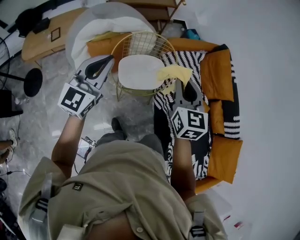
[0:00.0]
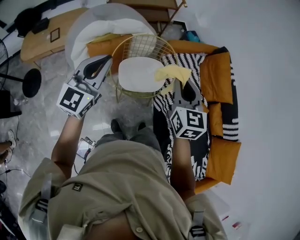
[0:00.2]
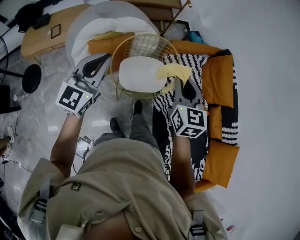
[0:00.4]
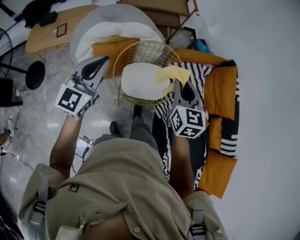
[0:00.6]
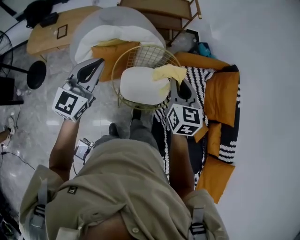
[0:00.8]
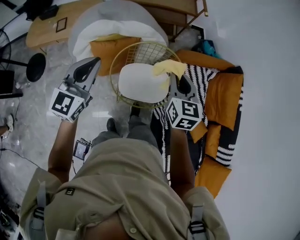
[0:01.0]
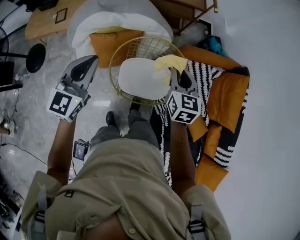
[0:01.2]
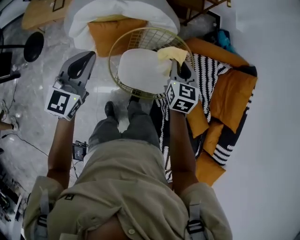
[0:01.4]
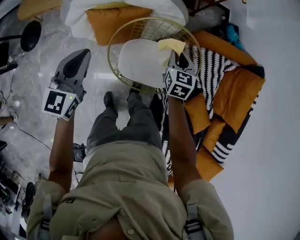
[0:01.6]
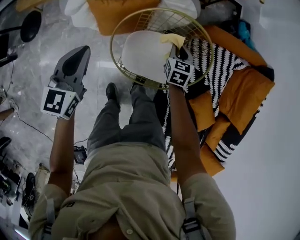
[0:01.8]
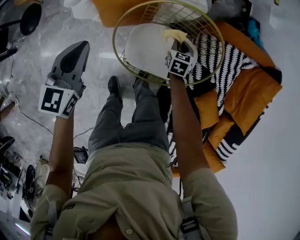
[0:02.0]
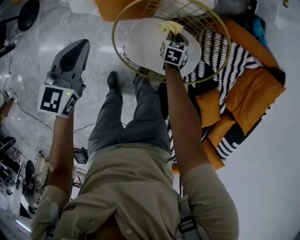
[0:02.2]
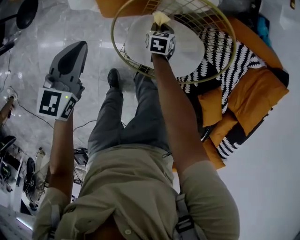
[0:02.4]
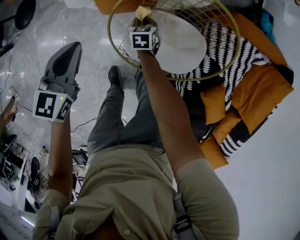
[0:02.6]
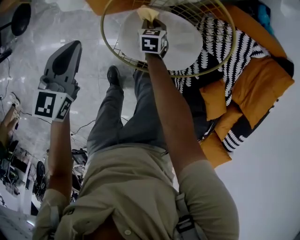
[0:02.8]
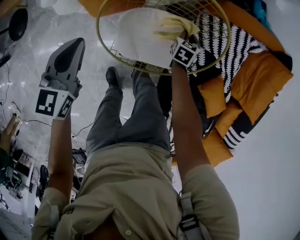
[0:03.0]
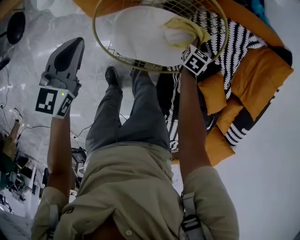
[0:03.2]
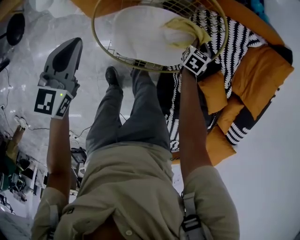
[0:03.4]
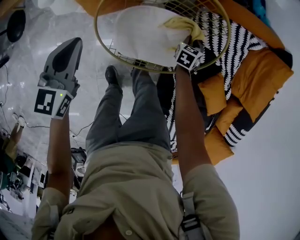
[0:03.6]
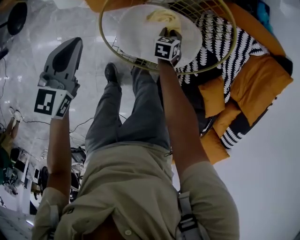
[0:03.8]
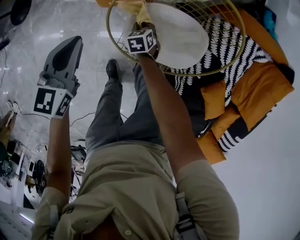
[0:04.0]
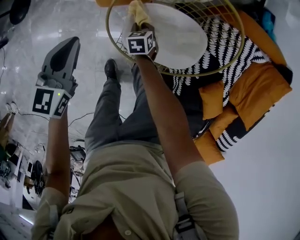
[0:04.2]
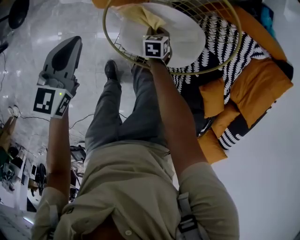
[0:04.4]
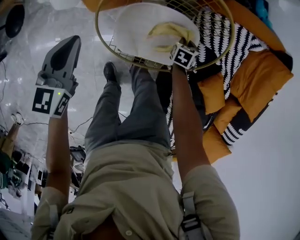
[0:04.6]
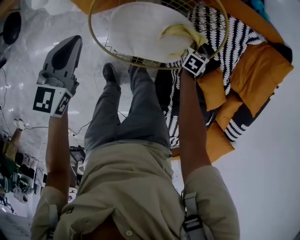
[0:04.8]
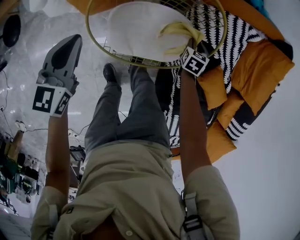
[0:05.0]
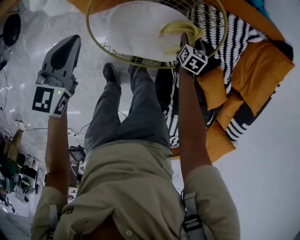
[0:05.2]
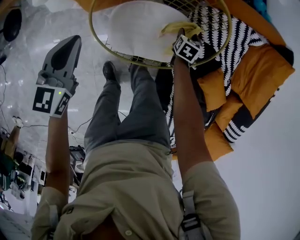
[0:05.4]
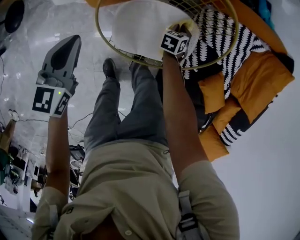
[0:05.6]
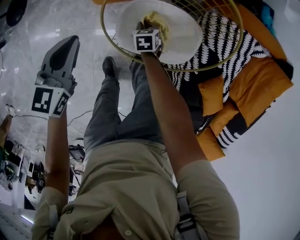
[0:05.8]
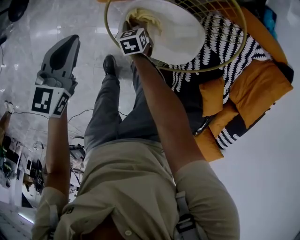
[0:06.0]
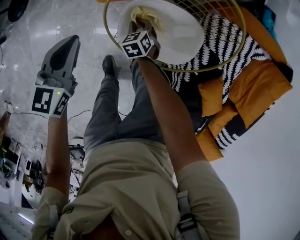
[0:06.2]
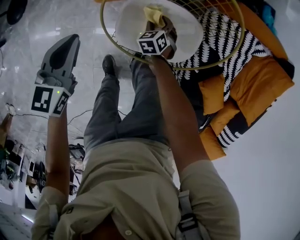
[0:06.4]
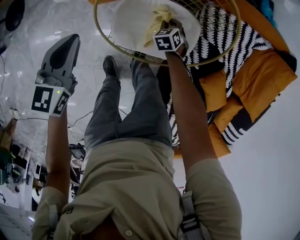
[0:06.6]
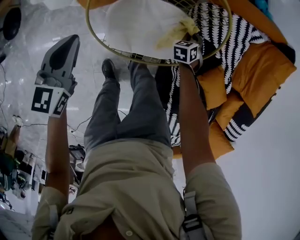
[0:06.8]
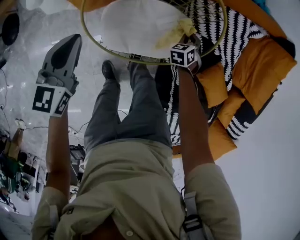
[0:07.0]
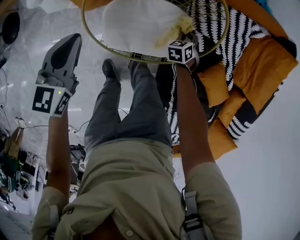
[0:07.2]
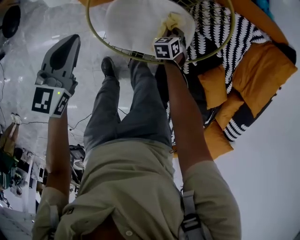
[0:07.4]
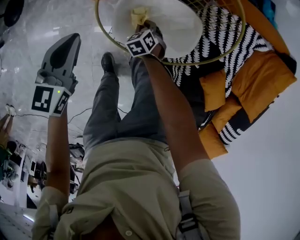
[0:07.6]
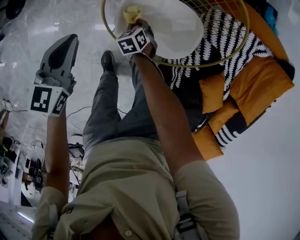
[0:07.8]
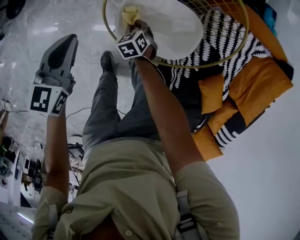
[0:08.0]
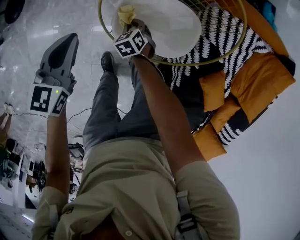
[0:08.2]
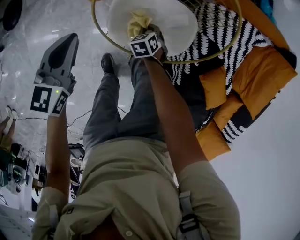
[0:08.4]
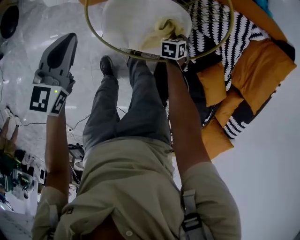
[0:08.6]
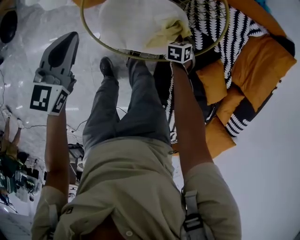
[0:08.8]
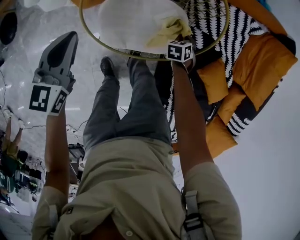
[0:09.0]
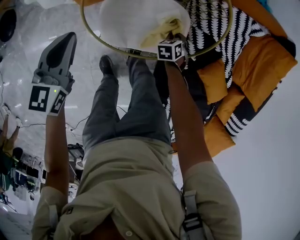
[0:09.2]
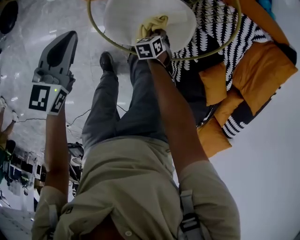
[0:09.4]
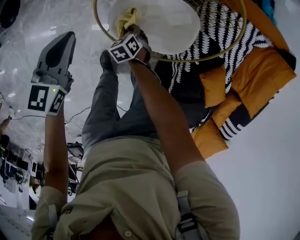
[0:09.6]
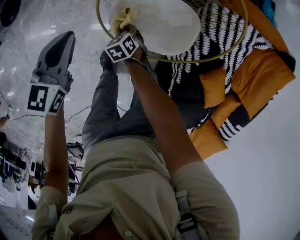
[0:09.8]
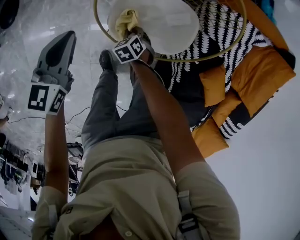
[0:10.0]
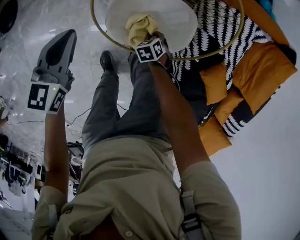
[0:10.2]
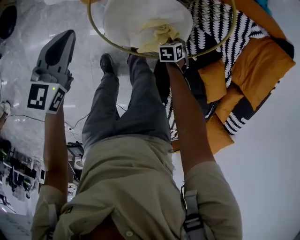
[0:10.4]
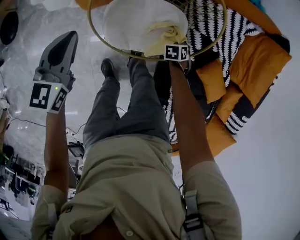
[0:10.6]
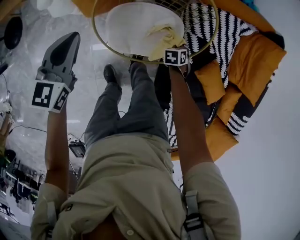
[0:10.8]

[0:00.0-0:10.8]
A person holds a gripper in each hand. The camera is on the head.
0:00.0 to 0:01.6: The left gripper shifts some 30 cm downward, forward and to the left, and turns by approximately 30 degrees, while the right gripper goes approximately 50 cm downward and forward, and turns by approximately 20 degrees.
0:01.6 to 0:03.0: The right gripper moves downward, some 30 cm, and swivels some 30 degrees; the left gripper heads downward, covering roughly 15 cm.
0:04.6 to 0:06.2: The left gripper ends up about 5 cm from where it was. Meanwhile the right gripper ends up roughly 30 cm from where it was, turns by roughly 40 degrees, and opens, then closes once more.
0:06.2 to 0:07.8: The right gripper swings up and down, approximately 5 cm each way, with 2 reversals, and opens, then closes once more.
0:07.8 to 0:09.2: The right gripper changes place by some 25 cm, and rotates some 30 degrees, while the left gripper changes place by about 10 cm.
0:09.2 to 0:10.8: The grippers both shift upward by roughly 5 cm.

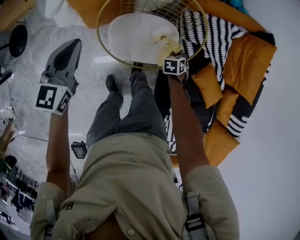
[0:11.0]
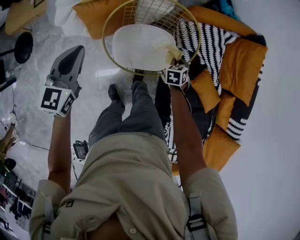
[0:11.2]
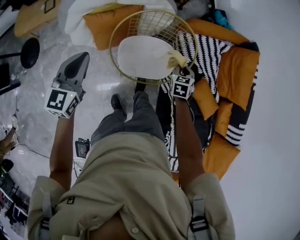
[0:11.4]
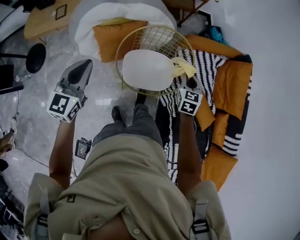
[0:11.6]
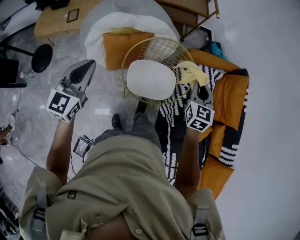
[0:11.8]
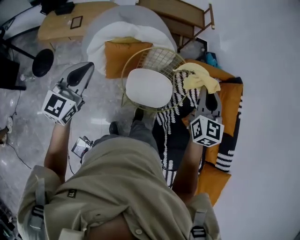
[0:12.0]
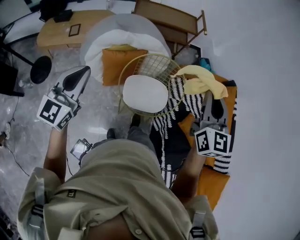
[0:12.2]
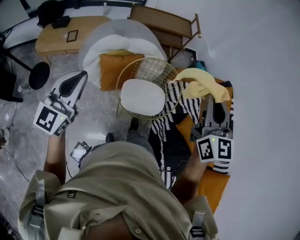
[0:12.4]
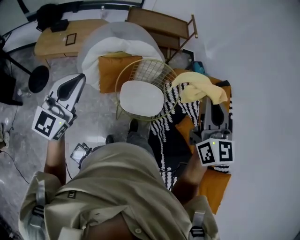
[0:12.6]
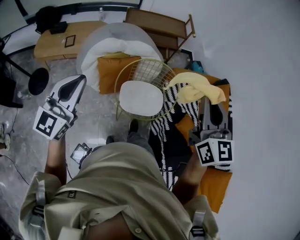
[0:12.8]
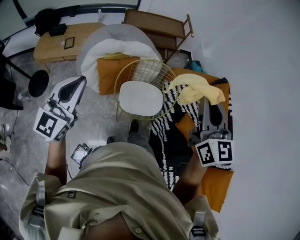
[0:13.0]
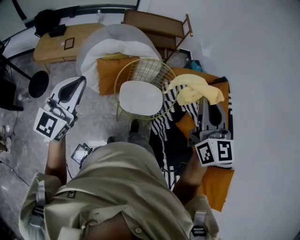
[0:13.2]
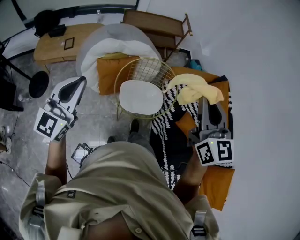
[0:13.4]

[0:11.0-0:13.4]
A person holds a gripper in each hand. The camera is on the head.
0:11.0 to 0:12.2: The right gripper heads upward, covering about 70 cm, and points its fingers roughly 70 degrees further upward. The left gripper is displaced upward and backward by about 40 cm, and swivels approximately 30 degrees.
0:12.2 to 0:13.4: The left gripper is displaced upward and backward by roughly 10 cm, while the right gripper travels backward and upward by some 10 cm.

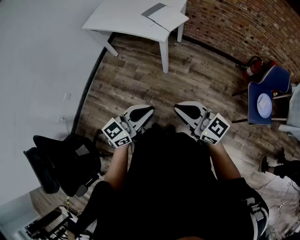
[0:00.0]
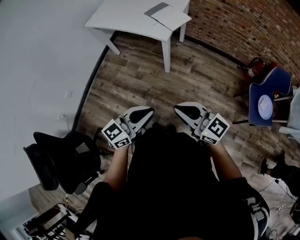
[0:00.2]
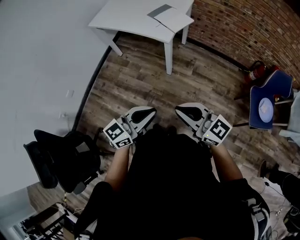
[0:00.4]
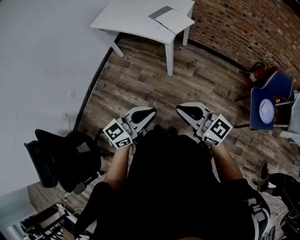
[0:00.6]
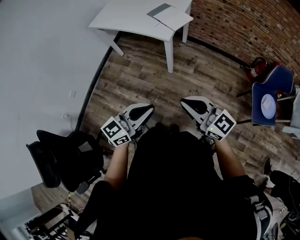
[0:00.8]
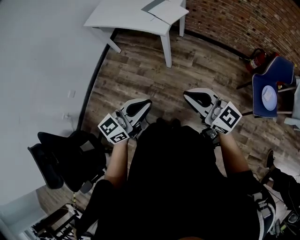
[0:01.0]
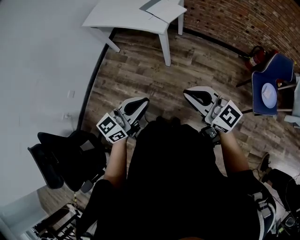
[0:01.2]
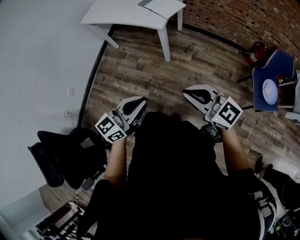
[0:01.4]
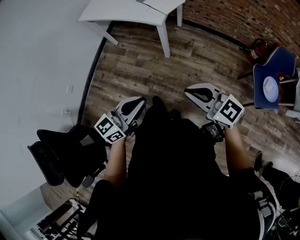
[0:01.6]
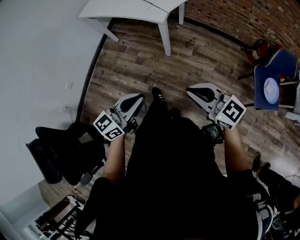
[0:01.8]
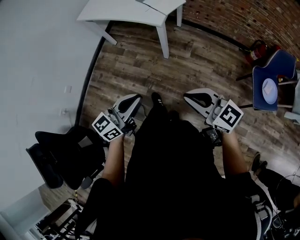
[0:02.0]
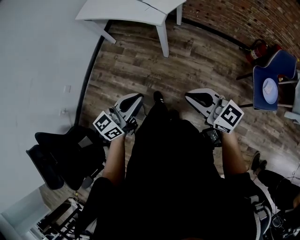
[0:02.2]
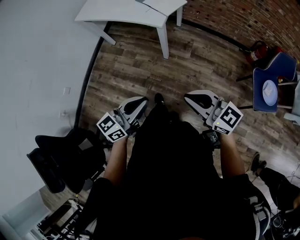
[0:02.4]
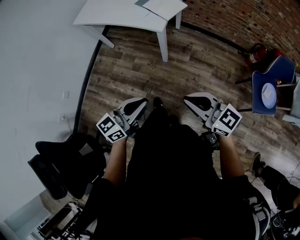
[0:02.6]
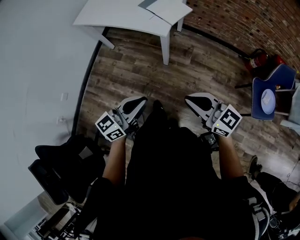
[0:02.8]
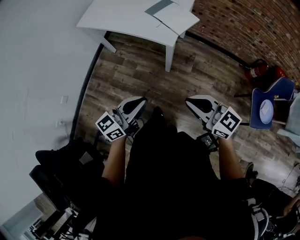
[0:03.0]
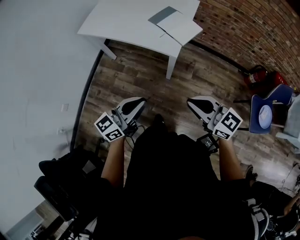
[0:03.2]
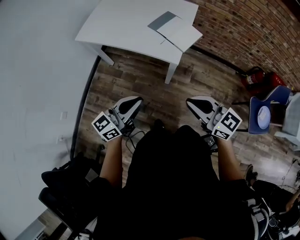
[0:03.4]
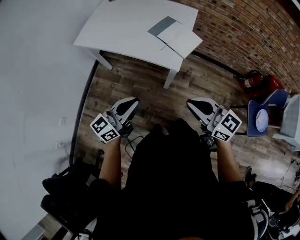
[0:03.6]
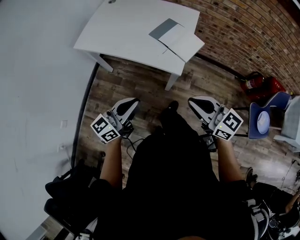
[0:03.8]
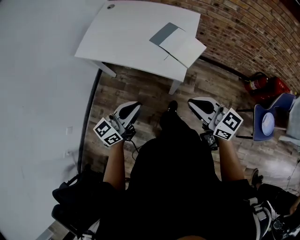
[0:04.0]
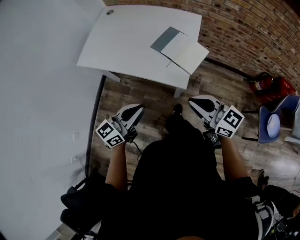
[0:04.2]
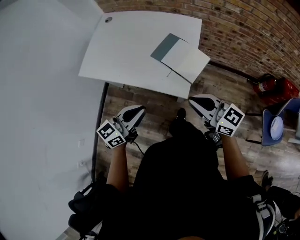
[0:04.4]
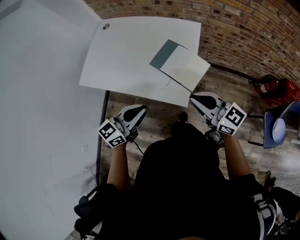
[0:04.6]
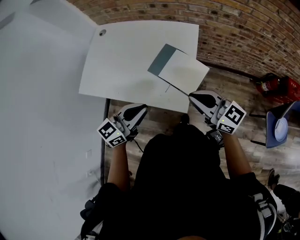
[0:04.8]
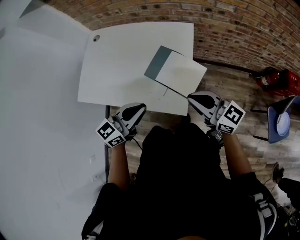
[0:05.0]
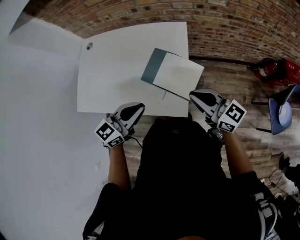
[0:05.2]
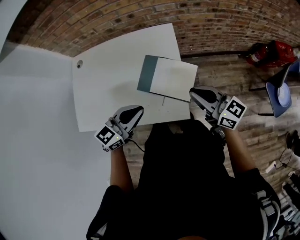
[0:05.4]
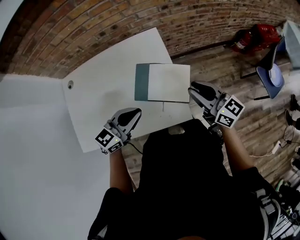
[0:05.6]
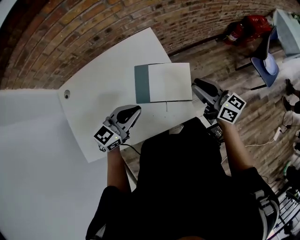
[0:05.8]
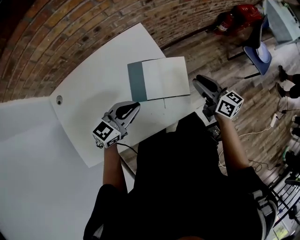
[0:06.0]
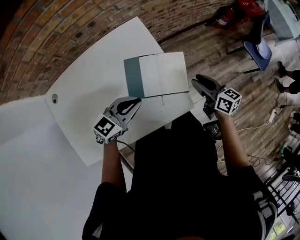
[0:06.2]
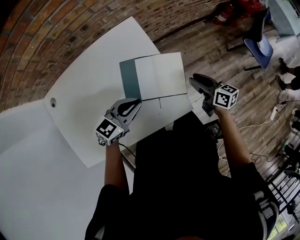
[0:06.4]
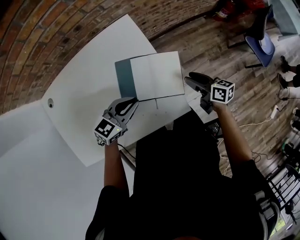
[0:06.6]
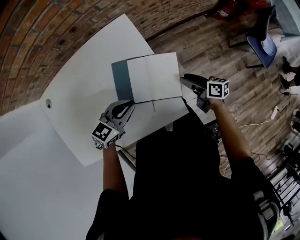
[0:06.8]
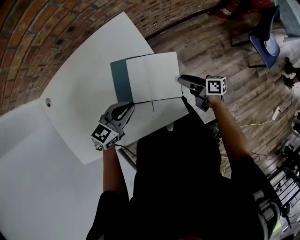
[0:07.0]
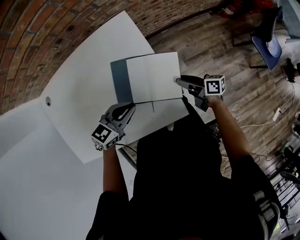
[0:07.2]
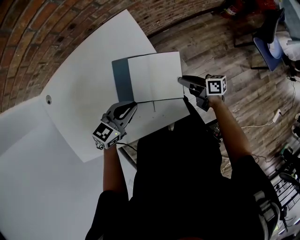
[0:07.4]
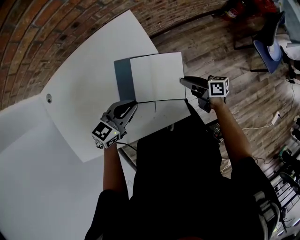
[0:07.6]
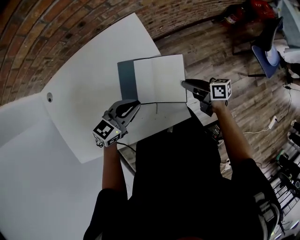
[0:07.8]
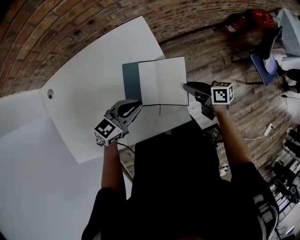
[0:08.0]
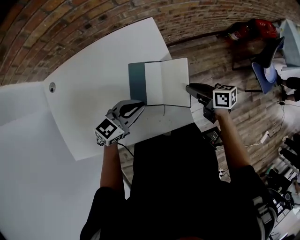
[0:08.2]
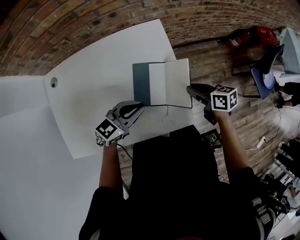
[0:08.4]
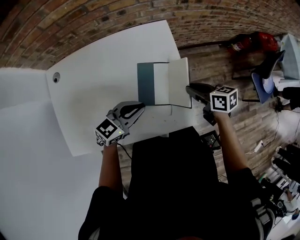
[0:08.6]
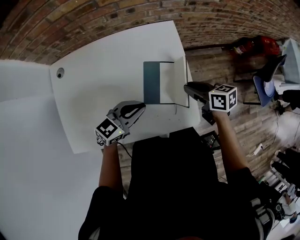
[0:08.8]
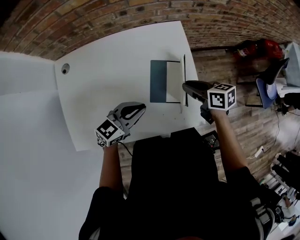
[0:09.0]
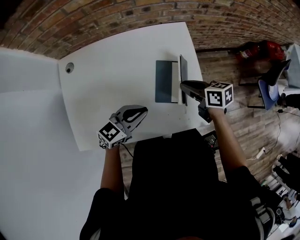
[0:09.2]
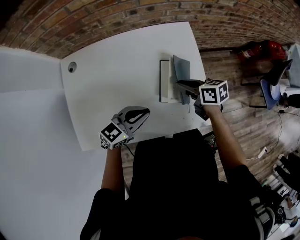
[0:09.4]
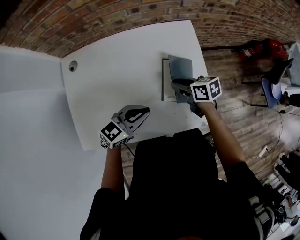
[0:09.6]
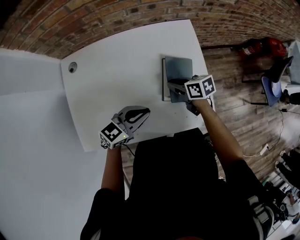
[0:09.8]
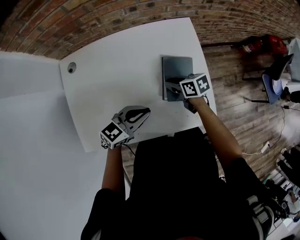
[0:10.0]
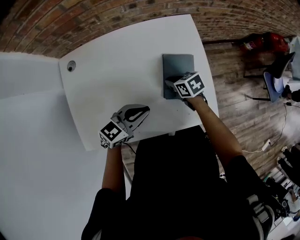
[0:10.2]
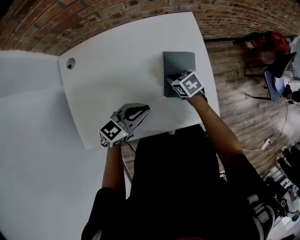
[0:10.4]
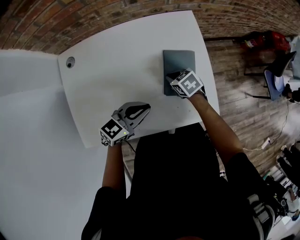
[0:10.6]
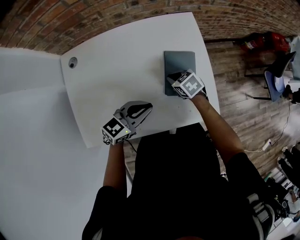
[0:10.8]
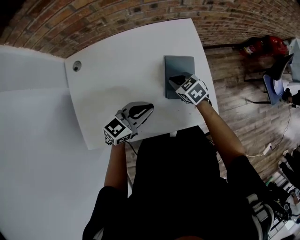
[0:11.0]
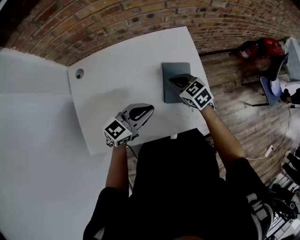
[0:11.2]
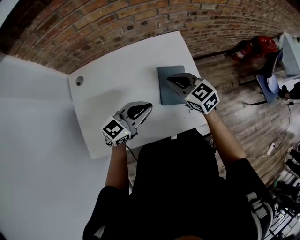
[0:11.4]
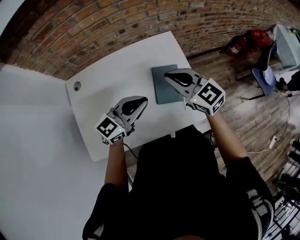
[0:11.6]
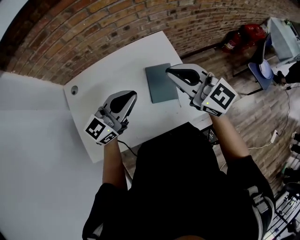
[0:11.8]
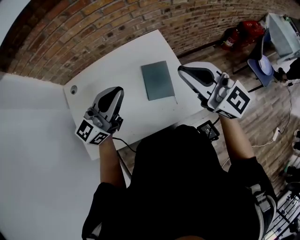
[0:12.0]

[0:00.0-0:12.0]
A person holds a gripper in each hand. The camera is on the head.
0:00.0 to 0:01.6: The grippers stay close to where they were, moving slightly.
0:01.6 to 0:03.0: Both grippers travel together forward, some 15 cm.
0:03.0 to 0:04.4: Both grippers move forward, about 30 cm.
0:04.4 to 0:06.0: The left gripper changes place by roughly 30 cm, and swivels roughly 50 degrees. The right gripper moves about 20 cm, turns by roughly 70 degrees, and opens.
0:06.0 to 0:07.6: The left gripper moves downward, approximately 10 cm, while the right gripper shifts roughly 15 cm downward, and rotates roughly 40 degrees.
0:07.6 to 0:09.0: The right gripper shifts roughly 20 cm to the left and upward, and rotates about 30 degrees. The left gripper shifts about 15 cm to the left.
0:09.0 to 0:10.4: The left gripper ends up roughly 5 cm from where it was. The right gripper is displaced downward by approximately 15 cm, and turns by about 30 degrees.
0:10.4 to 0:12.0: The left gripper goes roughly 25 cm upward, and changes its angle by about 30 degrees. Meanwhile the right gripper heads upward, covering approximately 40 cm, and tilts its fingers some 60 degrees upward.
